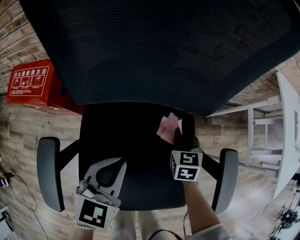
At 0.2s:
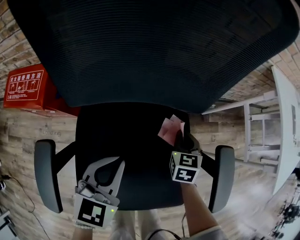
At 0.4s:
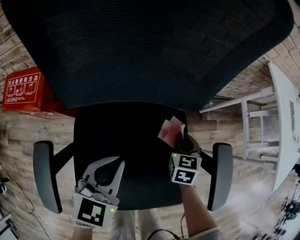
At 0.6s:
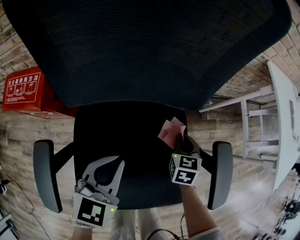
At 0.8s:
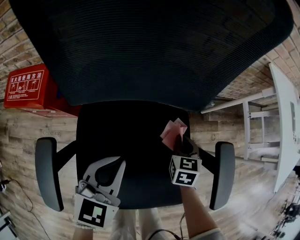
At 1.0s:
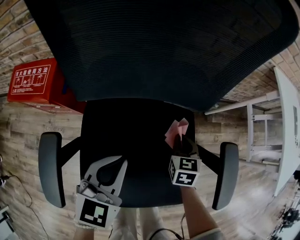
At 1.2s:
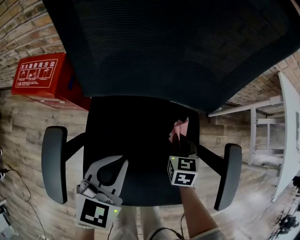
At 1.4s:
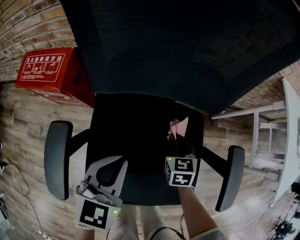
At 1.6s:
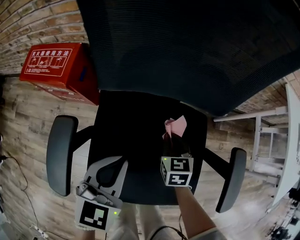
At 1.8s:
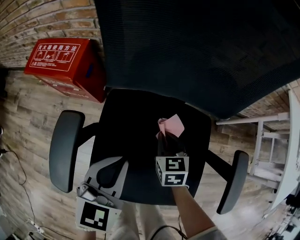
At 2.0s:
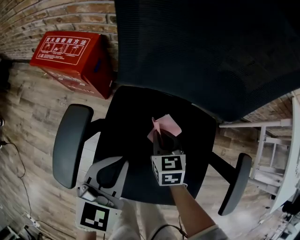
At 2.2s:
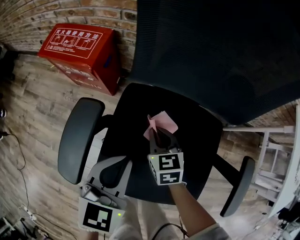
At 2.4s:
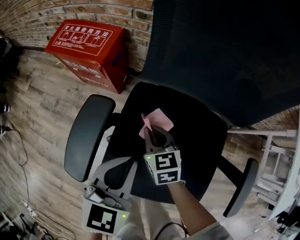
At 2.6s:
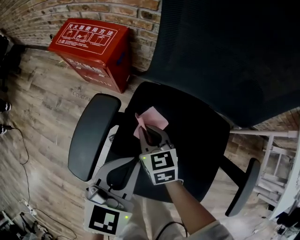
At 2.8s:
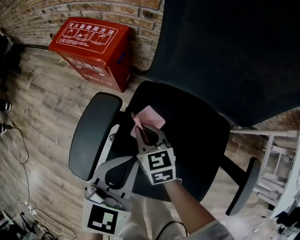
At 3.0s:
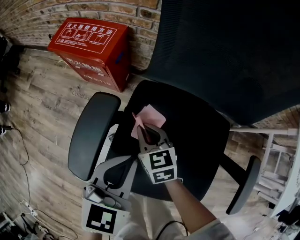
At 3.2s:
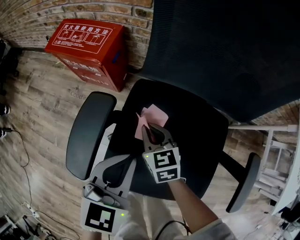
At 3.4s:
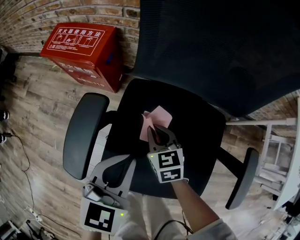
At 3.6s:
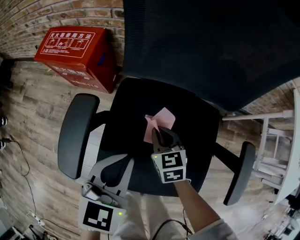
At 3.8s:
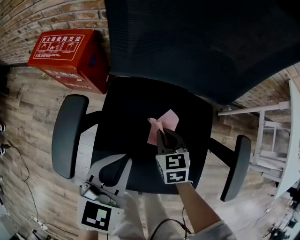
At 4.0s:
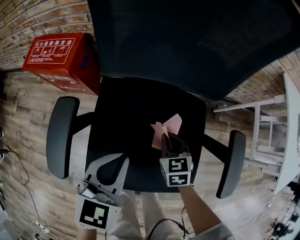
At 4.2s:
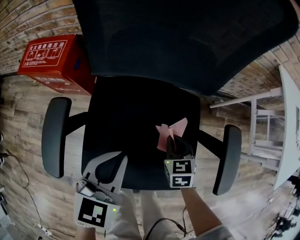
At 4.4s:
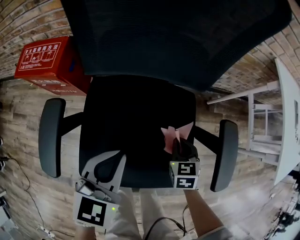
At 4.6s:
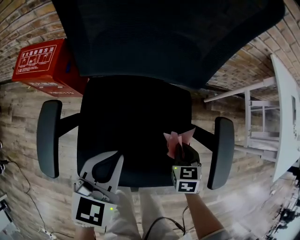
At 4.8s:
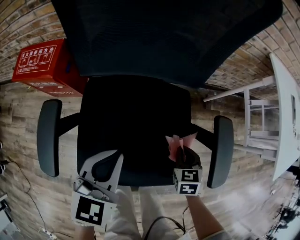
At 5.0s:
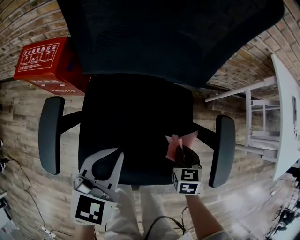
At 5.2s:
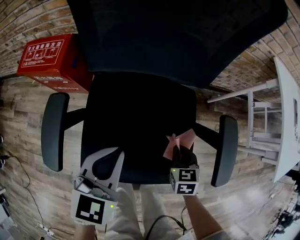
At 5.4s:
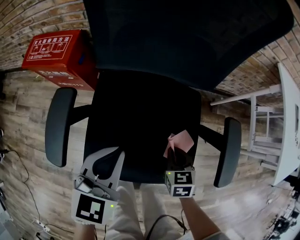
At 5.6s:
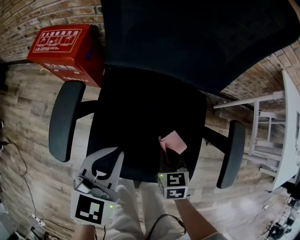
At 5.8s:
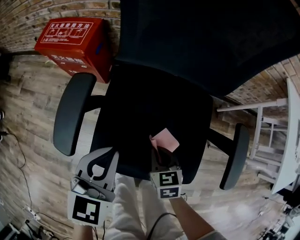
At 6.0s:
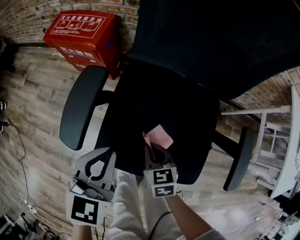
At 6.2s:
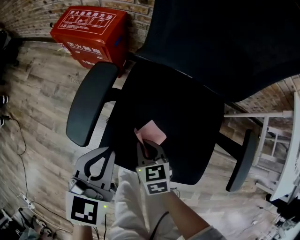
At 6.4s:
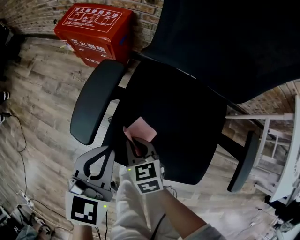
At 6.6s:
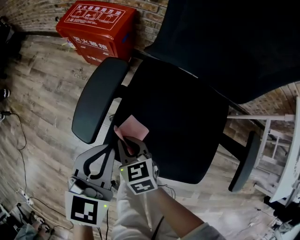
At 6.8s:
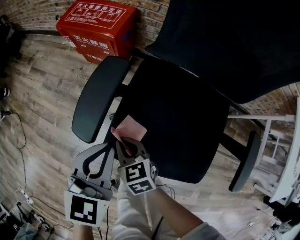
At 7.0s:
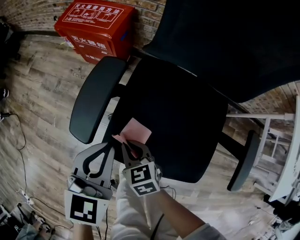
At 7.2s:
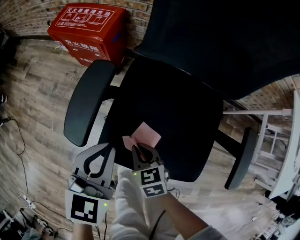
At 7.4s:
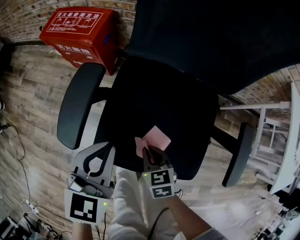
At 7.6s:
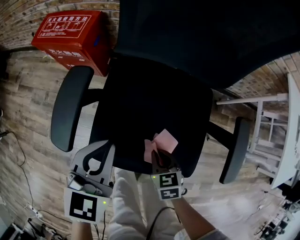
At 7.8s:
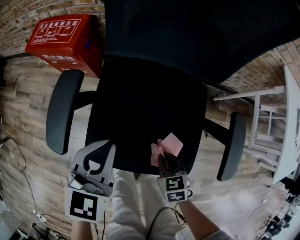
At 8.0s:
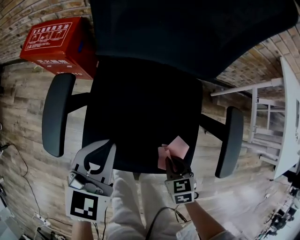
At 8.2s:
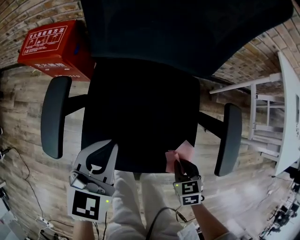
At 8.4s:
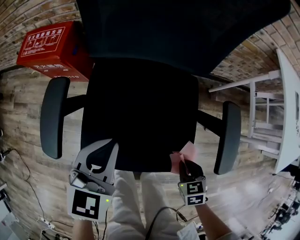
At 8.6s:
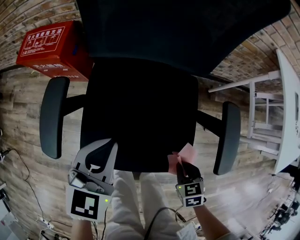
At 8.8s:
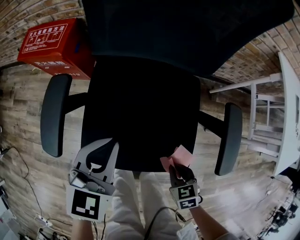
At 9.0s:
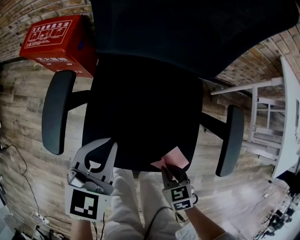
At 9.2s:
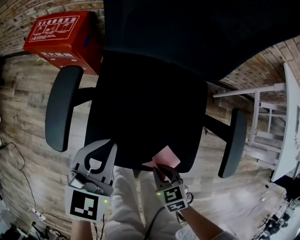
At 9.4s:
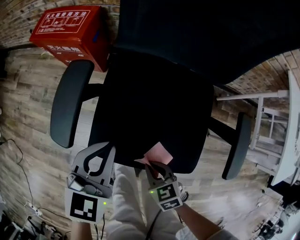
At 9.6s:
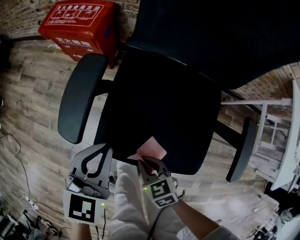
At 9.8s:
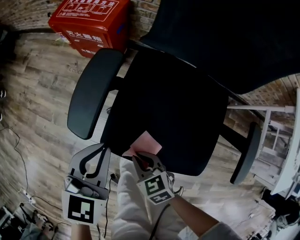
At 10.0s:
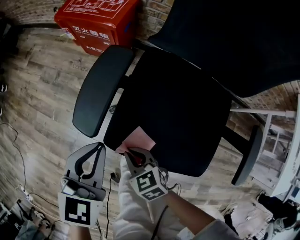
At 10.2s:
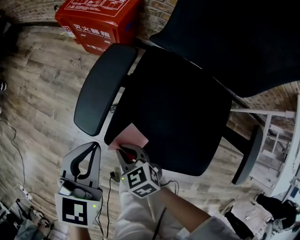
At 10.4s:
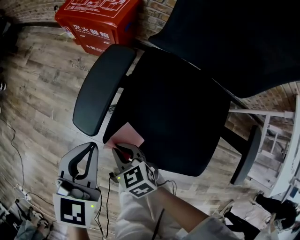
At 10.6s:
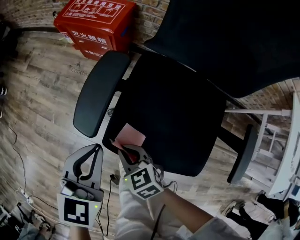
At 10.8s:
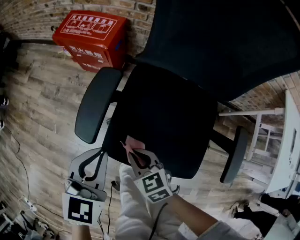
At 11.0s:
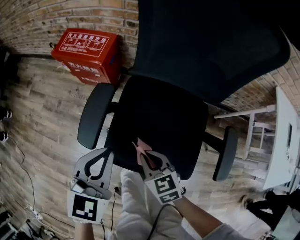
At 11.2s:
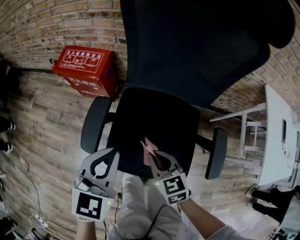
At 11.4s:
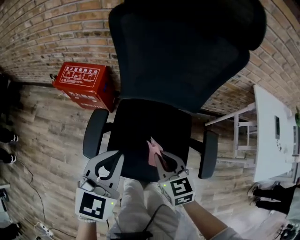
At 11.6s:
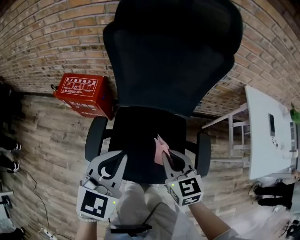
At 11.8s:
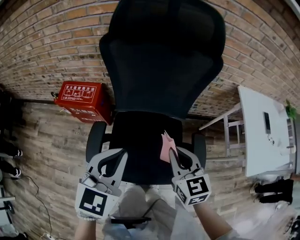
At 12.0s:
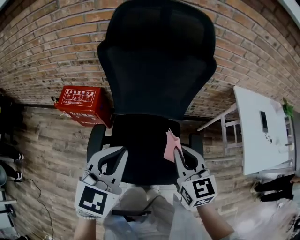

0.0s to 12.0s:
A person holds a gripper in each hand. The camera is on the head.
0.0s to 1.6s: The right gripper travels to the left and backward by approximately 10 cm. The left gripper travels backward by roughly 5 cm.
1.6s to 3.0s: The left gripper moves to the left, roughly 10 cm. The right gripper goes approximately 25 cm to the left, and rotates approximately 30 degrees.
3.0s to 4.4s: The right gripper ends up approximately 35 cm from where it was, and swivels roughly 40 degrees. The left gripper shifts by some 15 cm.
4.4s to 6.0s: The right gripper changes place by roughly 25 cm, and changes its angle by roughly 20 degrees; the left gripper changes place by approximately 15 cm.
6.0s to 7.6s: The right gripper travels backward by some 5 cm, and goes to the left and returns, about 15 cm each way, while the left gripper moves roughly 5 cm to the left and comes back.
7.6s to 9.0s: The right gripper heads to the right and backward, covering about 10 cm; the left gripper travels to the right by approximately 5 cm.
9.0s to 10.4s: The left gripper ends up some 20 cm from where it was, and turns by about 30 degrees; the right gripper changes place by some 30 cm, and turns by approximately 30 degrees.
10.4s to 12.0s: The two grippers go about 40 cm upward. The left gripper turns by approximately 40 degrees, while the right gripper changes its angle by roughly 50 degrees.

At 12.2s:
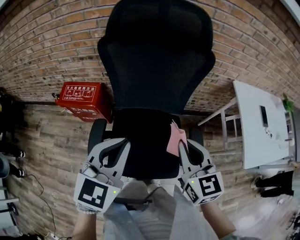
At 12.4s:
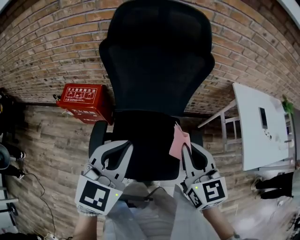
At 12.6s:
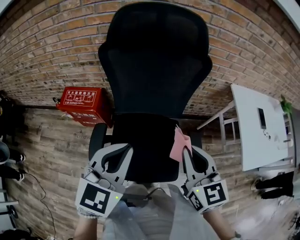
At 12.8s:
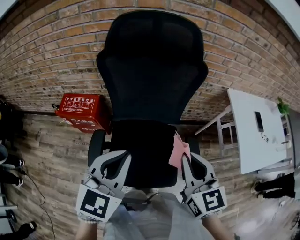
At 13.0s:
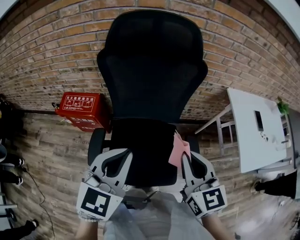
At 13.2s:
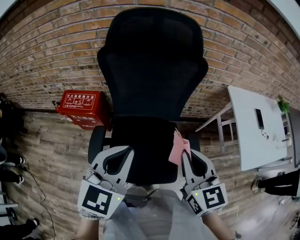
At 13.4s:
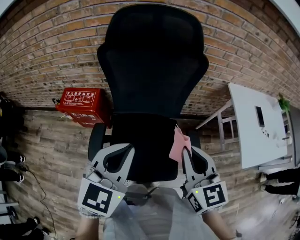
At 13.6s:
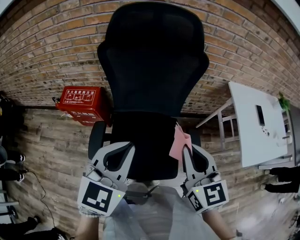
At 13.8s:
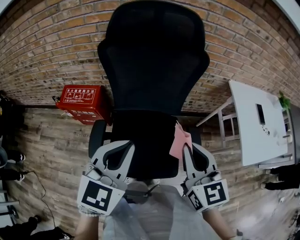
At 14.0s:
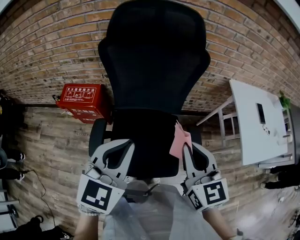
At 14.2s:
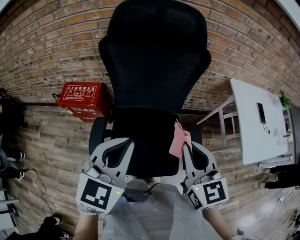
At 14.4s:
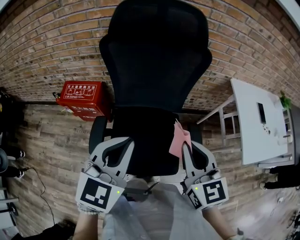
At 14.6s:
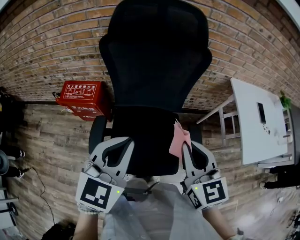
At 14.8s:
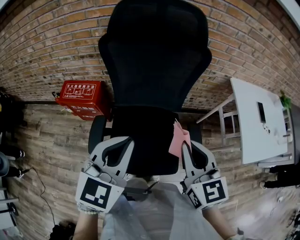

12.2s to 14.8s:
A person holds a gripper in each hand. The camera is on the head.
12.2s to 13.4s: The right gripper changes place by approximately 5 cm.
13.4s to 14.8s: The grippers stay close to where they were, moving slightly.

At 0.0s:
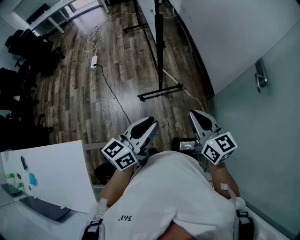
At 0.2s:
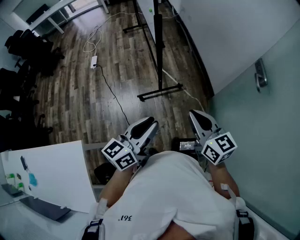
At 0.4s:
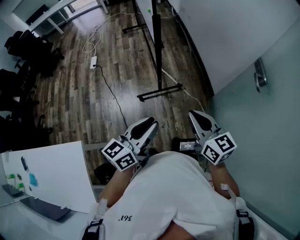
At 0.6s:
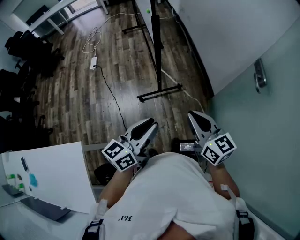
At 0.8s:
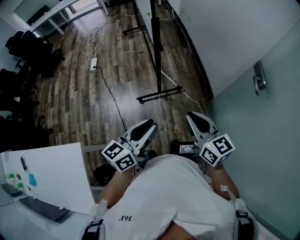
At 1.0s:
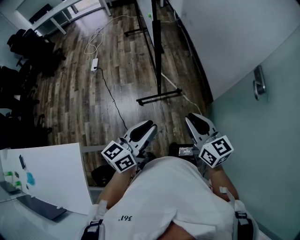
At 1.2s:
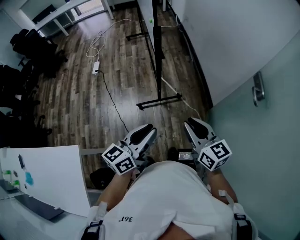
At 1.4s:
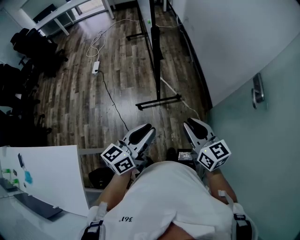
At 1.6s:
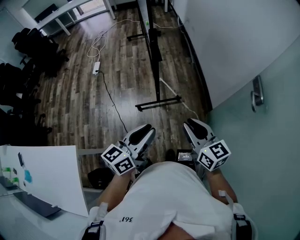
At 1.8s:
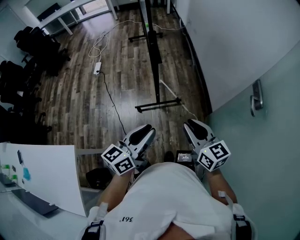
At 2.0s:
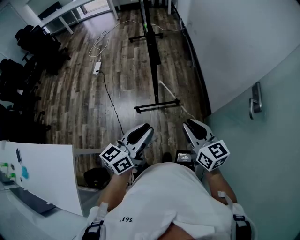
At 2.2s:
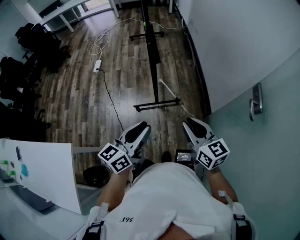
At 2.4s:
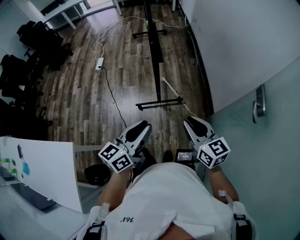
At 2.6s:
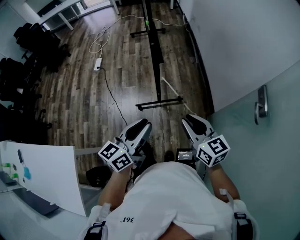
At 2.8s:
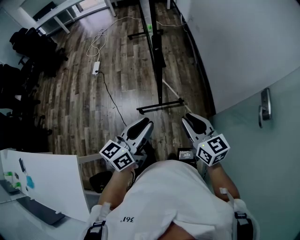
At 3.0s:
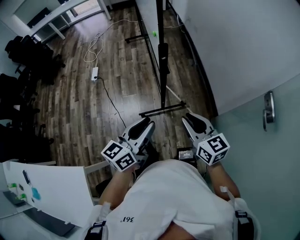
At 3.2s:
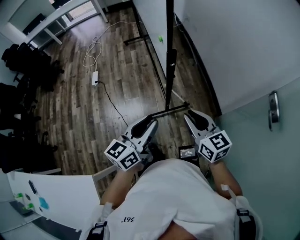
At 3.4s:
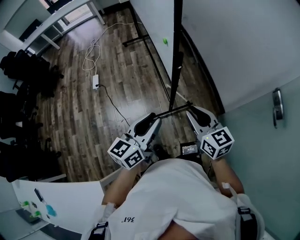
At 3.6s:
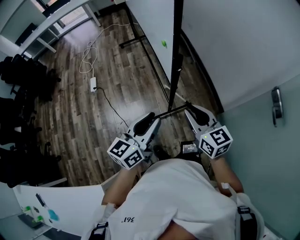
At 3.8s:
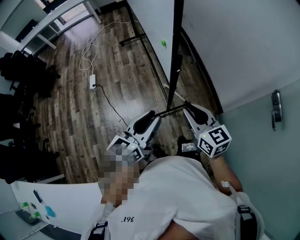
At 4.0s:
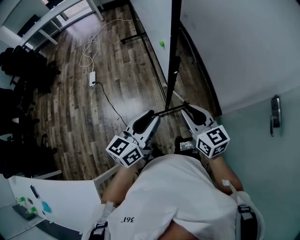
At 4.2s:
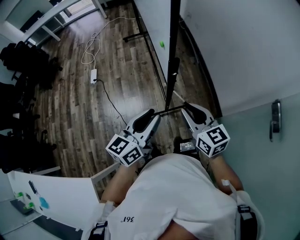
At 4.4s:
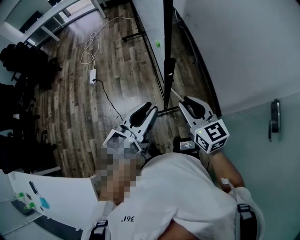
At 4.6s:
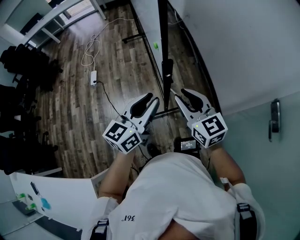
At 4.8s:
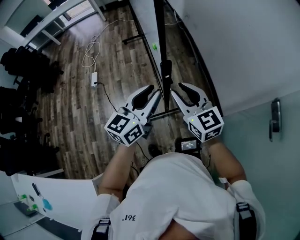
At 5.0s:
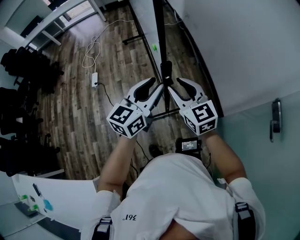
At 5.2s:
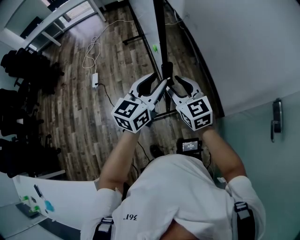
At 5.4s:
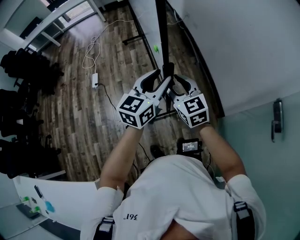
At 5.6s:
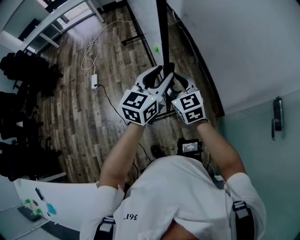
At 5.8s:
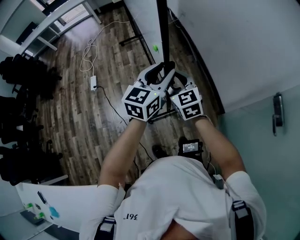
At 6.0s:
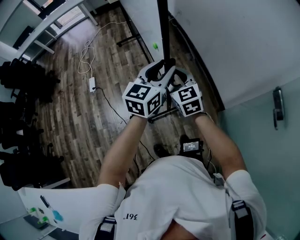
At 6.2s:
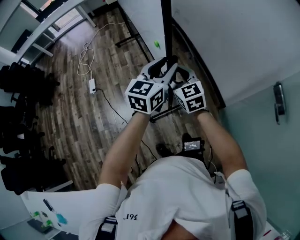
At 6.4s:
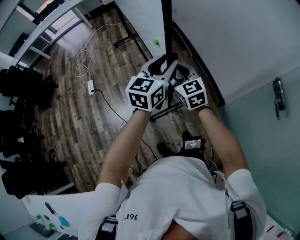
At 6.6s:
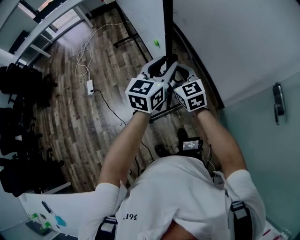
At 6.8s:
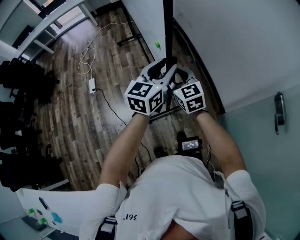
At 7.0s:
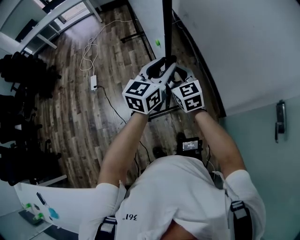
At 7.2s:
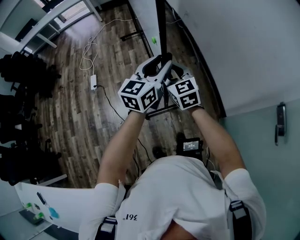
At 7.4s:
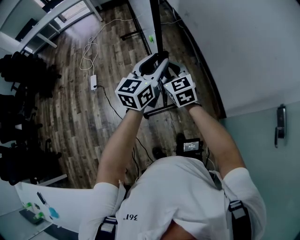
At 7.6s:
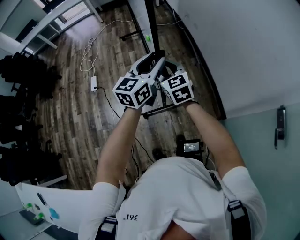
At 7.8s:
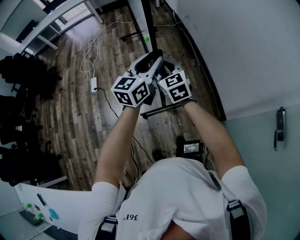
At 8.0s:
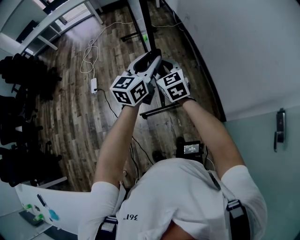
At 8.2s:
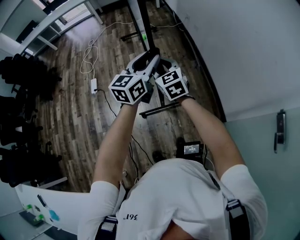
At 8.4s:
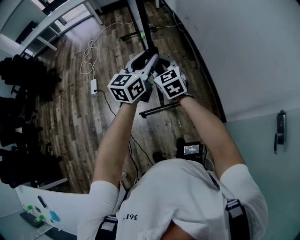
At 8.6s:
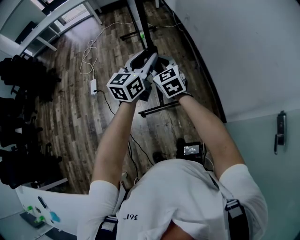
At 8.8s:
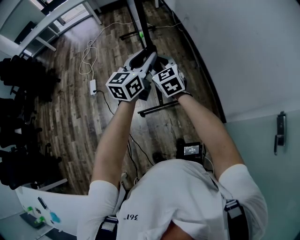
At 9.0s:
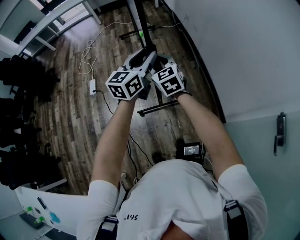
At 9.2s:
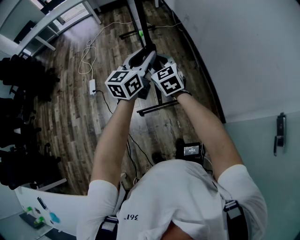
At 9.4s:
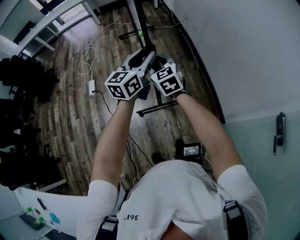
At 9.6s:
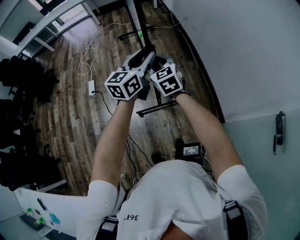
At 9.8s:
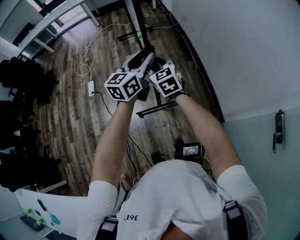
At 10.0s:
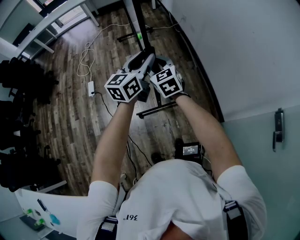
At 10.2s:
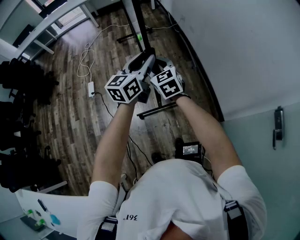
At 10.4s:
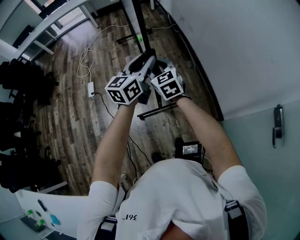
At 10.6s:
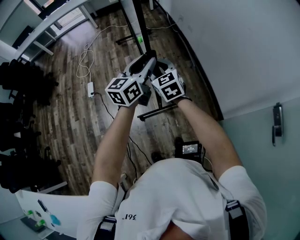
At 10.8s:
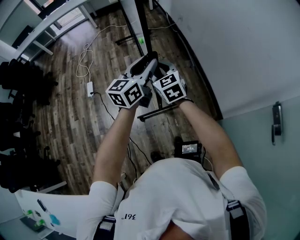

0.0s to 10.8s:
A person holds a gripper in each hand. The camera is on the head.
0.0s to 1.6s: Both grippers travel together to the right, approximately 5 cm.
1.6s to 3.0s: Both grippers travel together forward and to the left, some 15 cm.
3.0s to 4.6s: Both grippers travel together forward, about 15 cm.
4.6s to 6.2s: The left gripper is displaced forward by some 10 cm. Meanwhile the right gripper heads forward and to the left, covering some 10 cm, and opens.
6.2s to 7.8s: Both grippers travel together forward and to the left, about 15 cm.
7.8s to 9.2s: Both grippers travel together forward, about 5 cm.
9.2s to 10.8s: The two grippers go approximately 5 cm backward.
